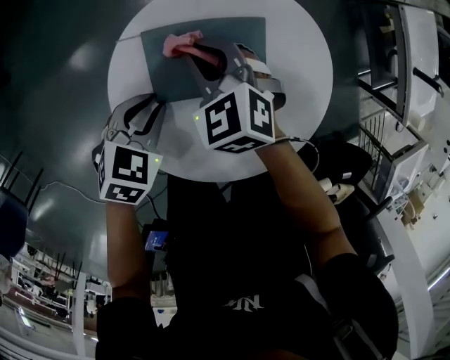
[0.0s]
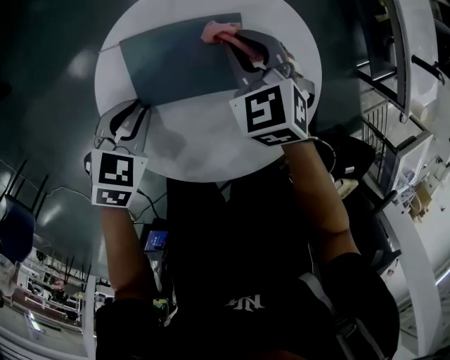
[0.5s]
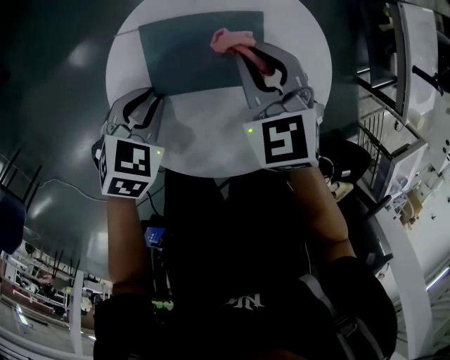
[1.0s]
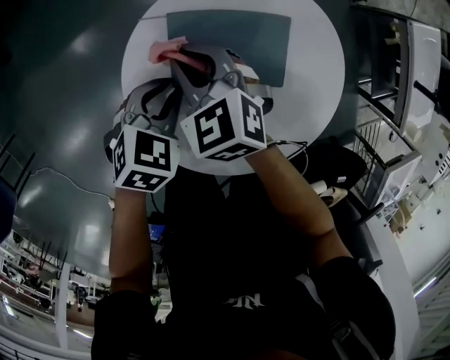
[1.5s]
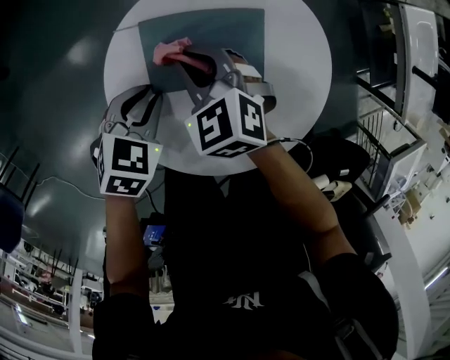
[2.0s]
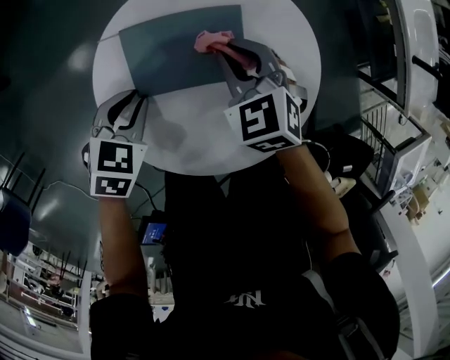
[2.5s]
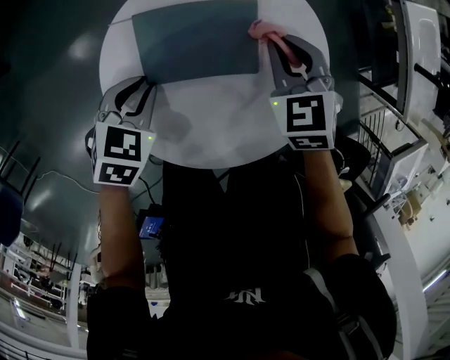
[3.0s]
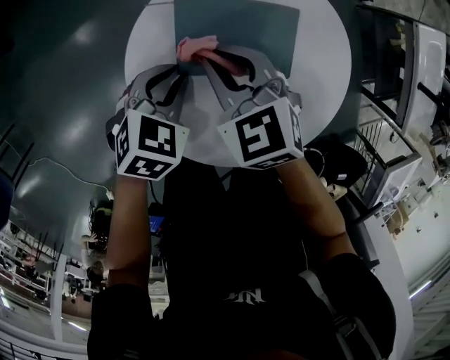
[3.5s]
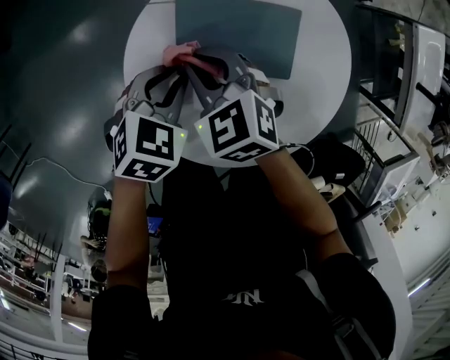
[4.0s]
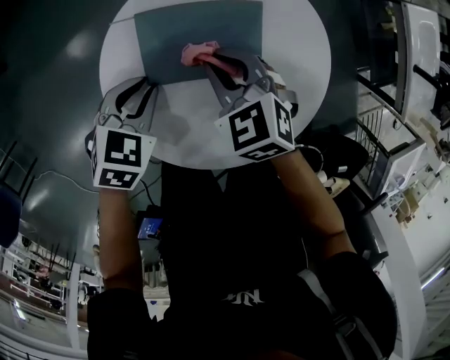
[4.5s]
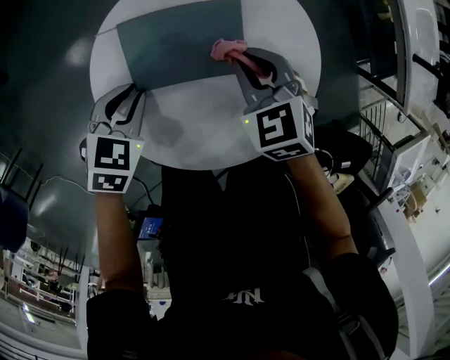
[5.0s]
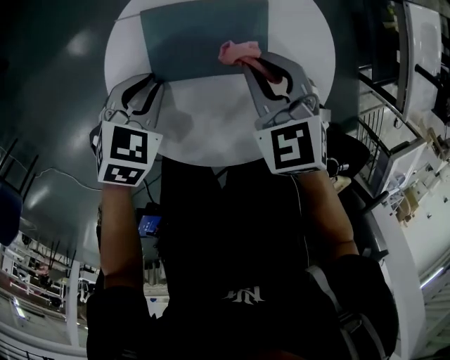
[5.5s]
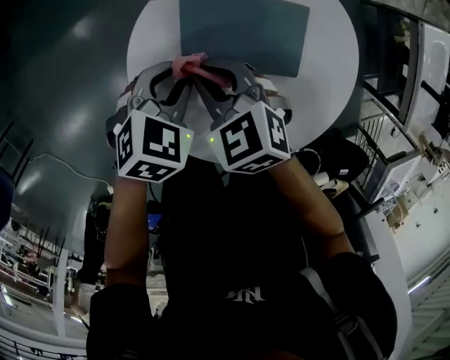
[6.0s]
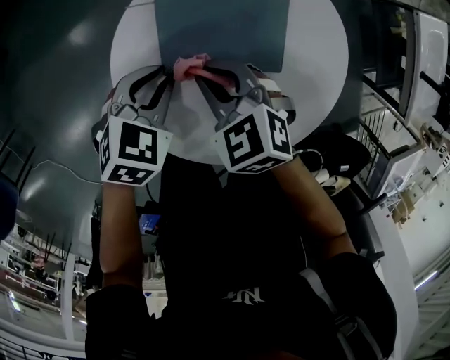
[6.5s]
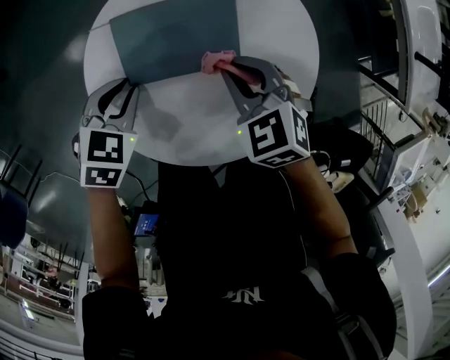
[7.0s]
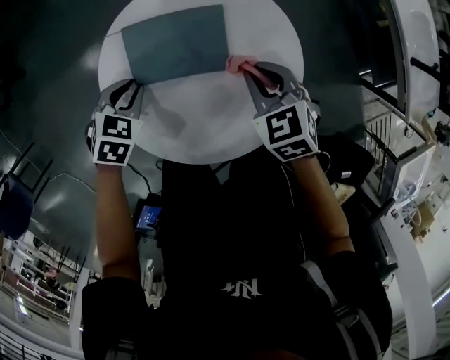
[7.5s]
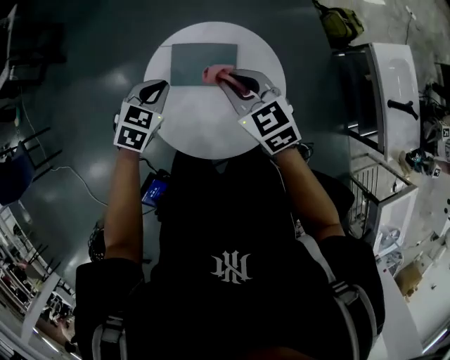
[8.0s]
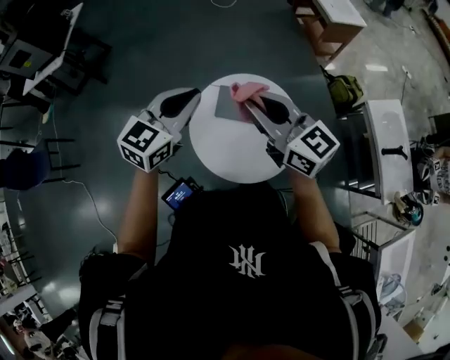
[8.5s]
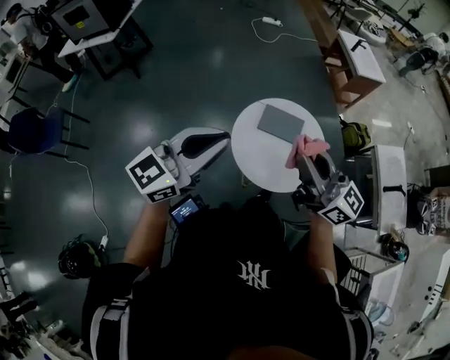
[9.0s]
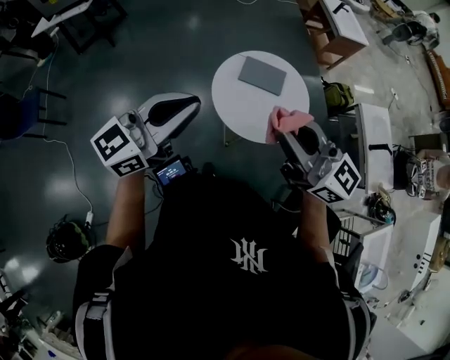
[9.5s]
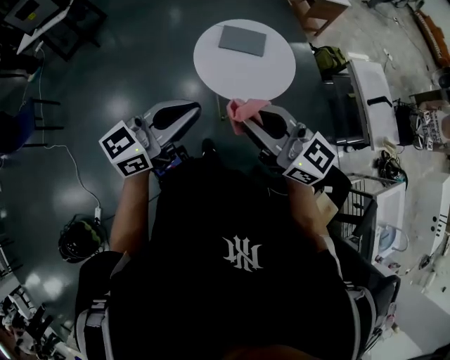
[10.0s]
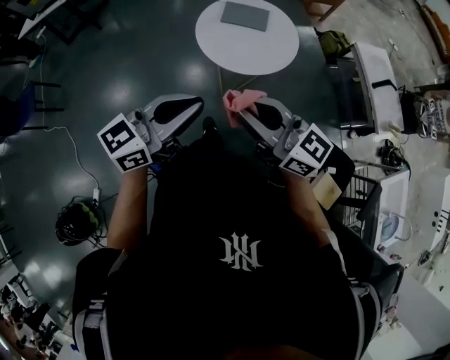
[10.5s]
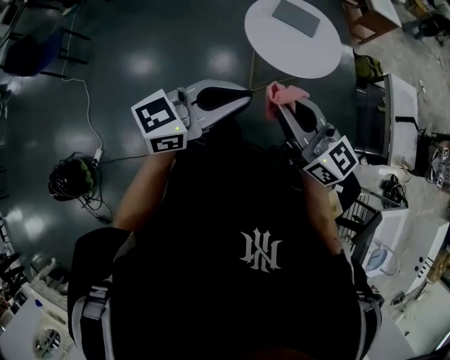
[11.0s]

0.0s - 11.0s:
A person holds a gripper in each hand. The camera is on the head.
0.0s - 2.0s: The right gripper goes left and right, roughly 15 cm each way, reversing 2 times.
2.0s - 3.5s: The right gripper reaches roughly 15 cm to the right, then returns.
3.5s - 5.5s: The right gripper heads to the right, covering about 10 cm.
5.5s - 7.5s: The right gripper shifts approximately 10 cm to the right.
7.5s - 9.0s: The left gripper is displaced upward and backward by roughly 70 cm, and tips its fingers upward by approximately 70 degrees. Meanwhile the right gripper goes about 70 cm upward, to the left and backward, and tilts its fingers some 70 degrees upward.
9.0s - 11.0s: Both grippers travel together backward, about 35 cm.

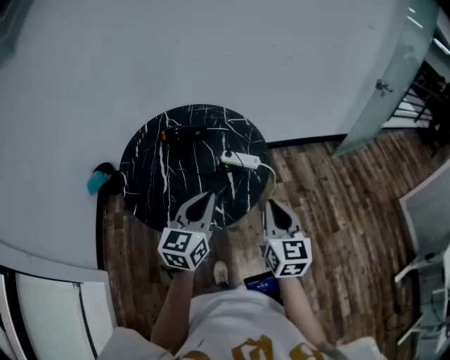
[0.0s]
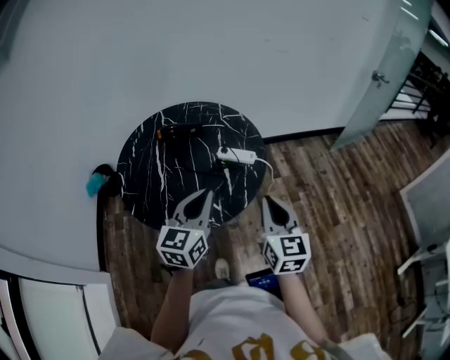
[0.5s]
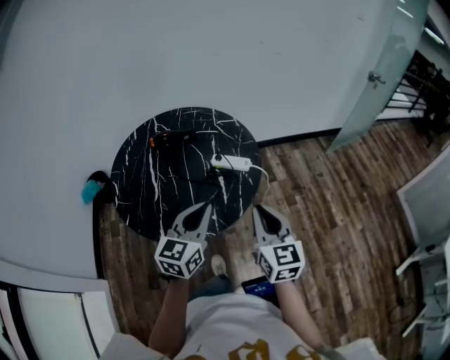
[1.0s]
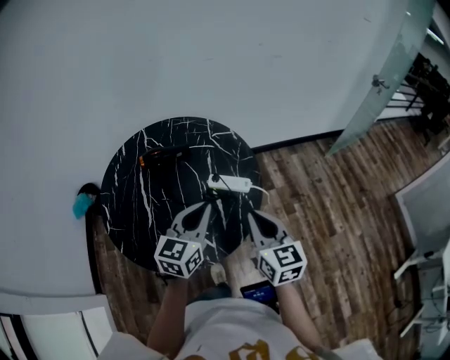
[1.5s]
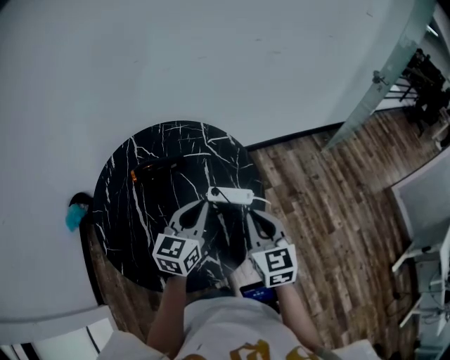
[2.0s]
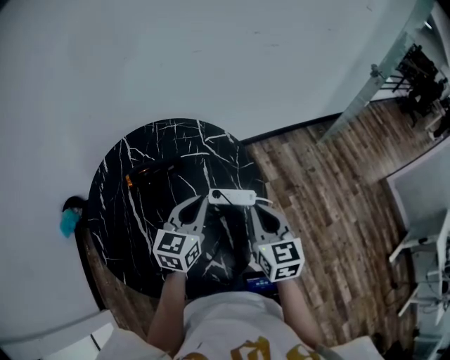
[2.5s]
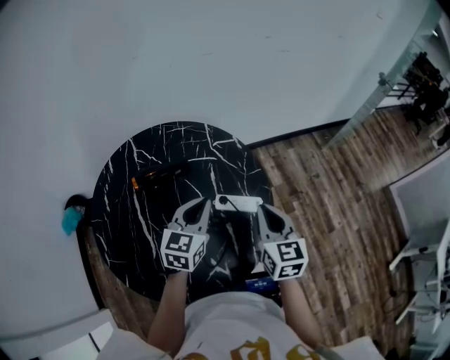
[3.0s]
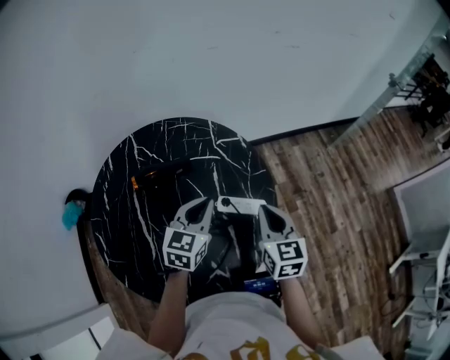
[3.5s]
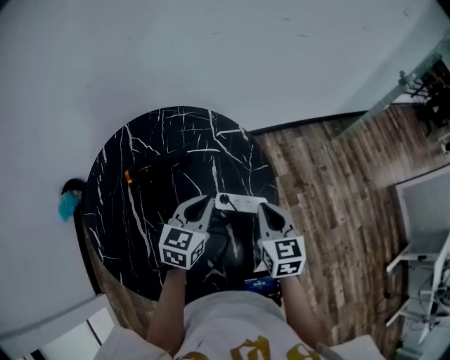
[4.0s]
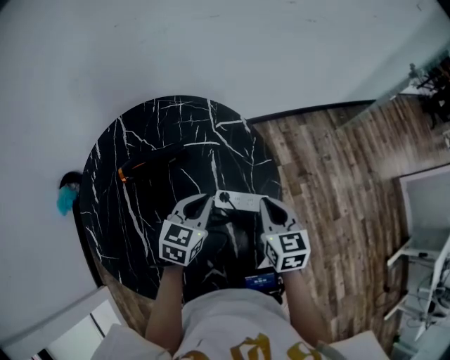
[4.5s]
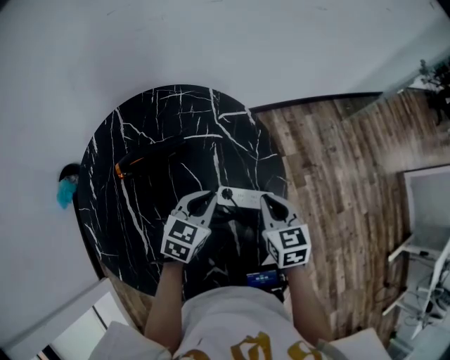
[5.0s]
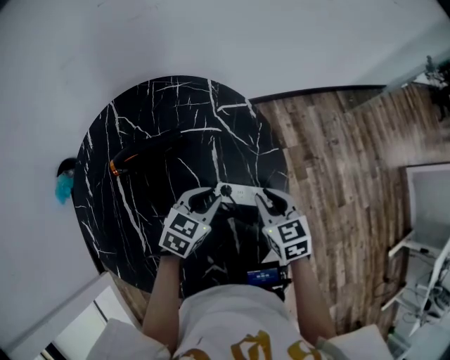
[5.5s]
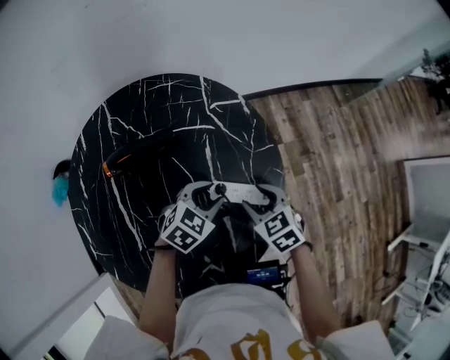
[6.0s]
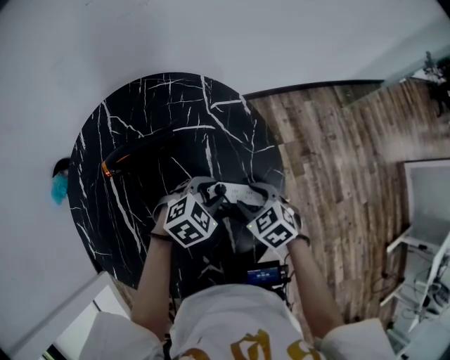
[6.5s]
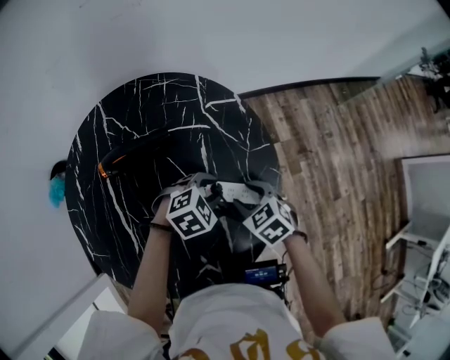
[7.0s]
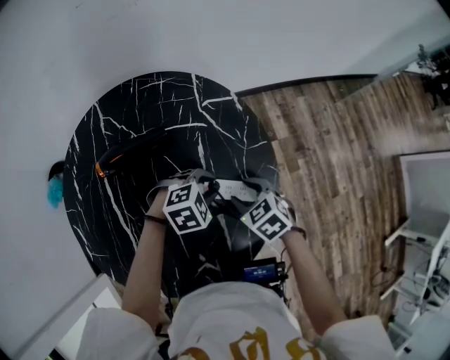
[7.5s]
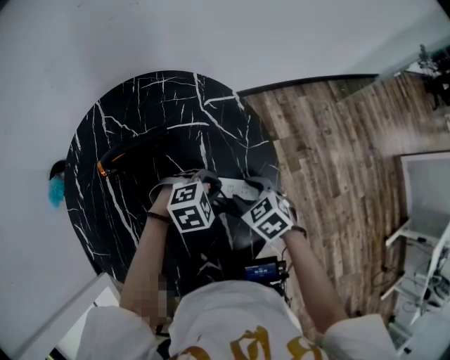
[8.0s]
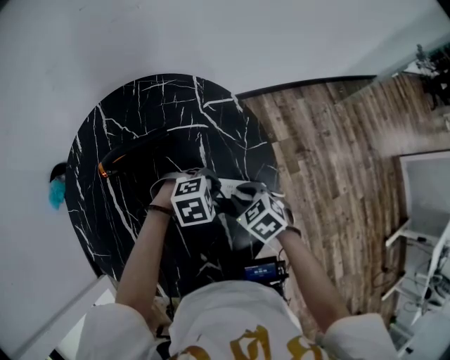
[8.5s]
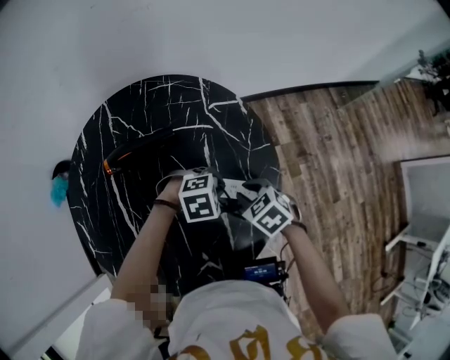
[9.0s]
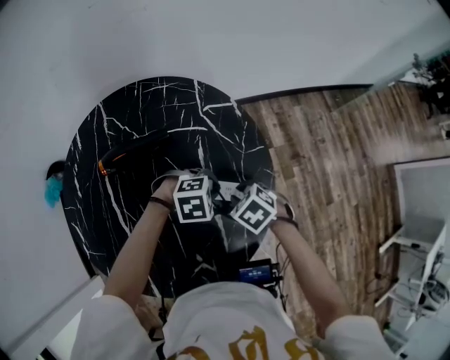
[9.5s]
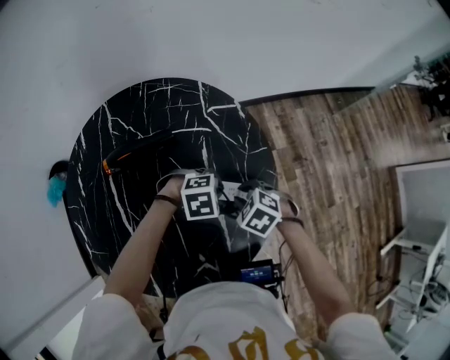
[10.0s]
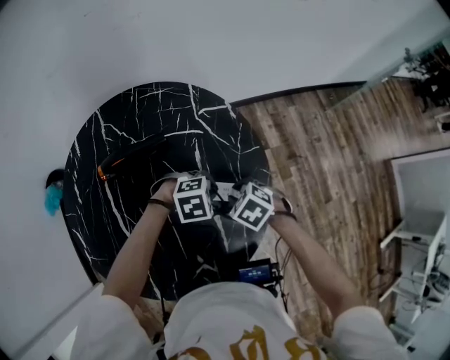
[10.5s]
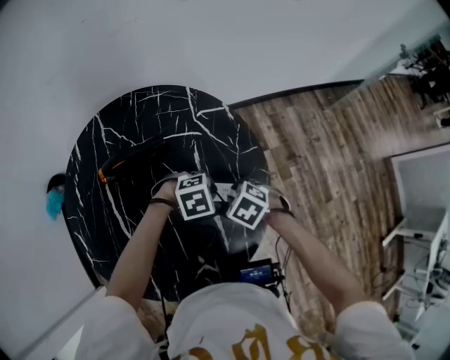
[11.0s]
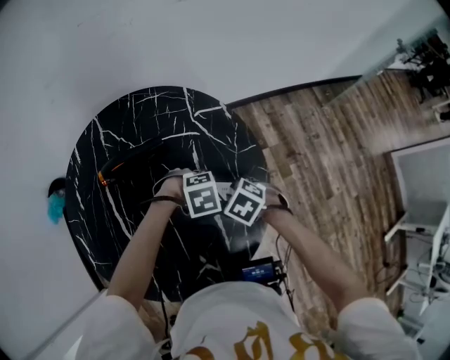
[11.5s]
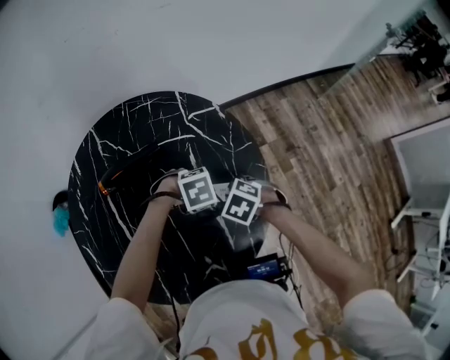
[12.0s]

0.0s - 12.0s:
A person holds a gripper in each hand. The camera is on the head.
0.0s - 2.0s: Both grippers move forward, about 20 cm.
2.0s - 4.0s: The two grippers go about 15 cm forward and downward.
4.0s - 6.0s: The two grippers go about 10 cm downward. The right gripper rotates roughly 30 degrees, and opens; the left gripper changes its angle by some 30 degrees, and opens its fingers.
6.0s - 8.0s: The left gripper rotates about 30 degrees.
8.0s - 10.0s: The right gripper swivels roughly 20 degrees, and closes its fingers.
10.0s - 12.0s: There are only small adjustments of the grippers.

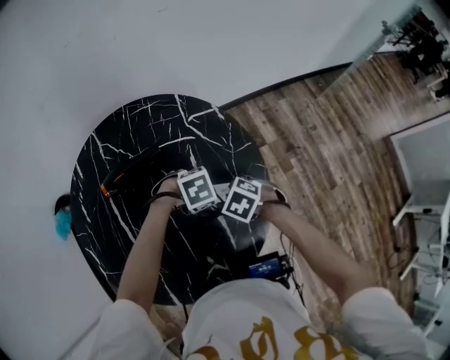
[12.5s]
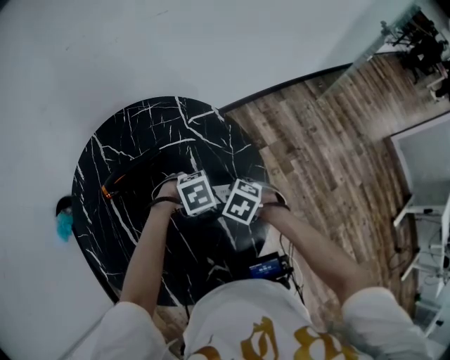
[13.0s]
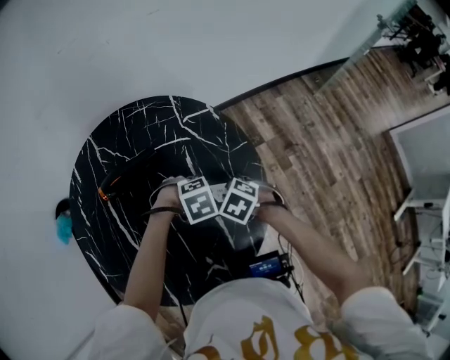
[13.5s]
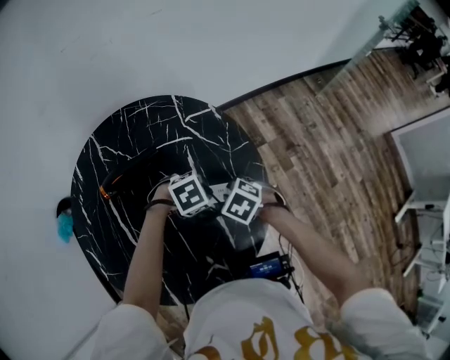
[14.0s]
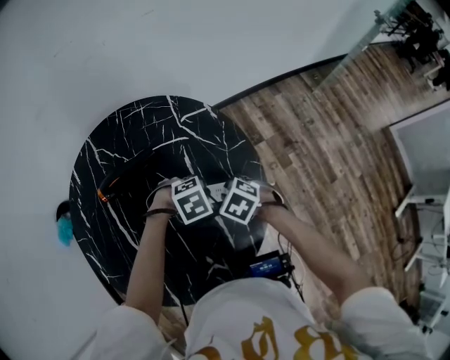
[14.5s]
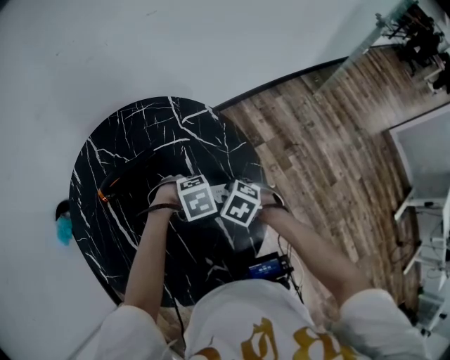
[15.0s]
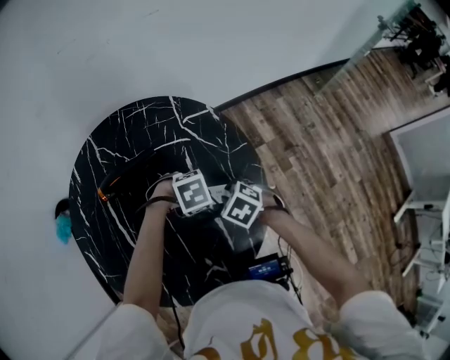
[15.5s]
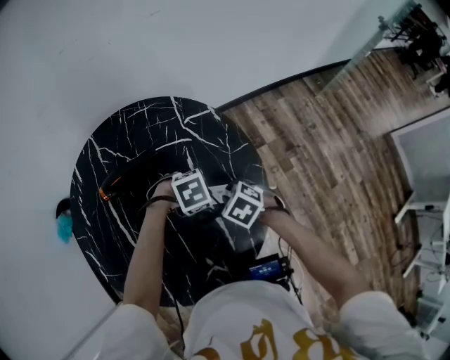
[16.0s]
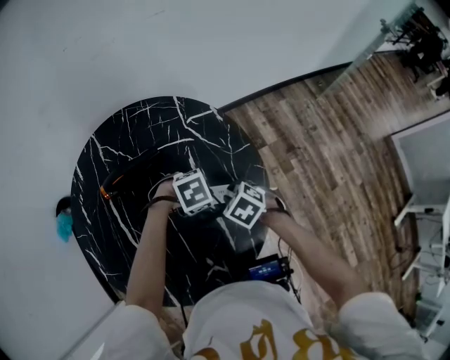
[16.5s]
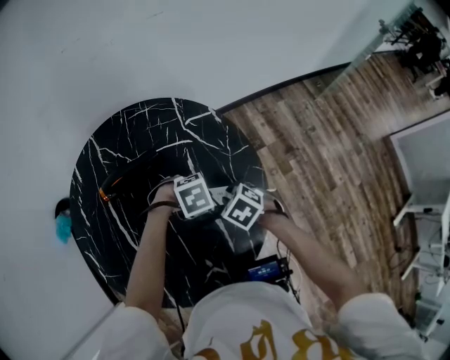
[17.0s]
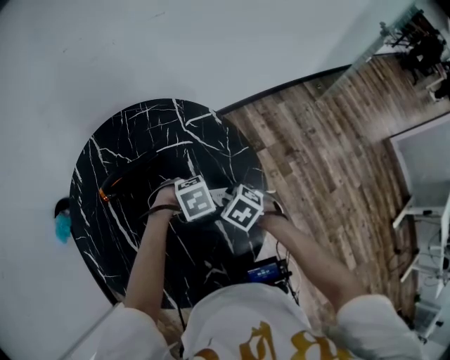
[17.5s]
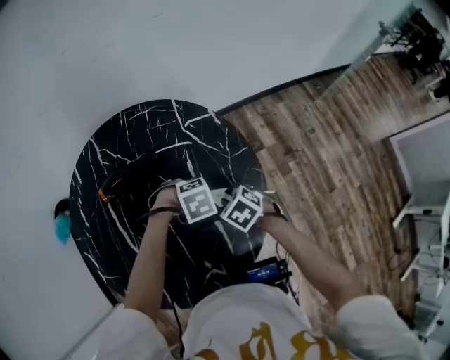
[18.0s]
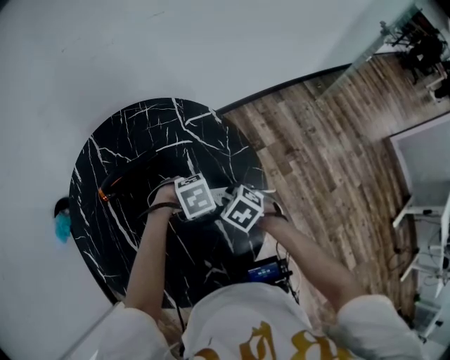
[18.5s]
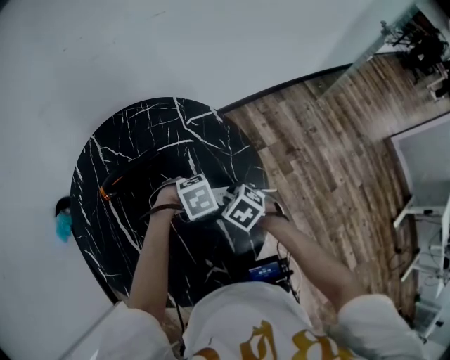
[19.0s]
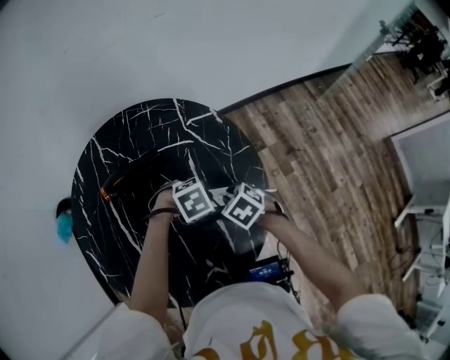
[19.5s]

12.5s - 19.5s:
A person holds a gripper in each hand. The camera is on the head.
12.5s - 19.5s: The grippers move only a little.
